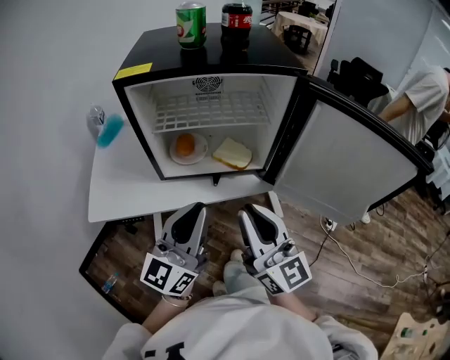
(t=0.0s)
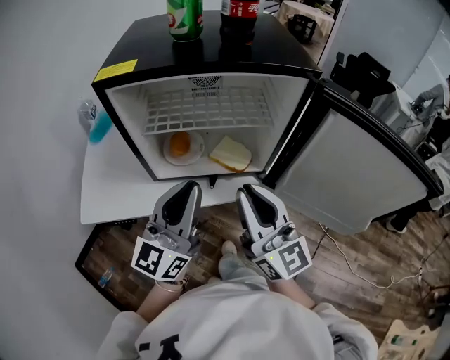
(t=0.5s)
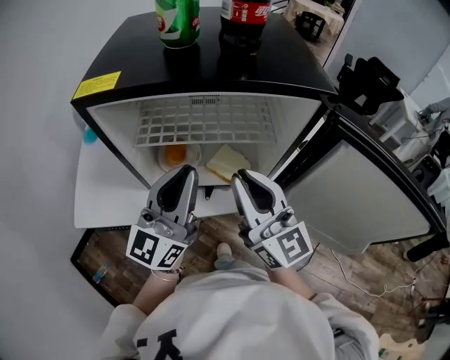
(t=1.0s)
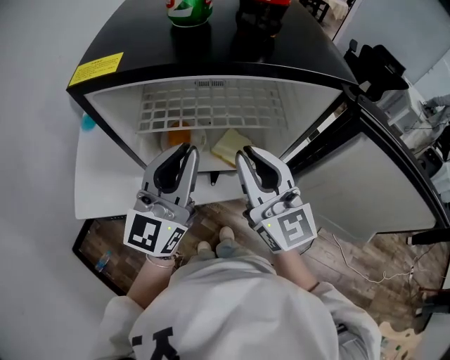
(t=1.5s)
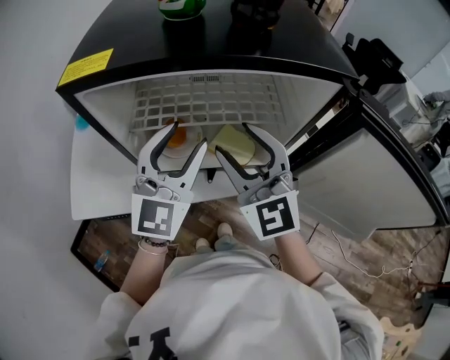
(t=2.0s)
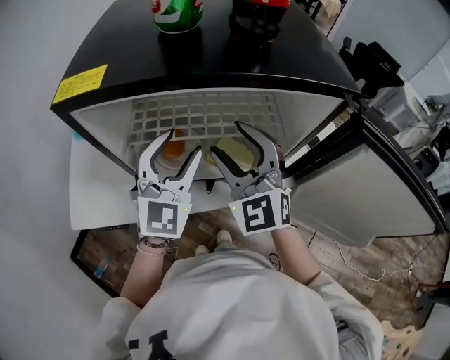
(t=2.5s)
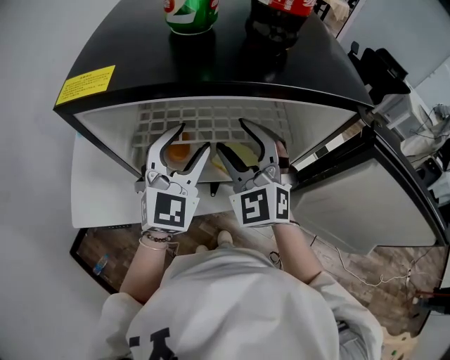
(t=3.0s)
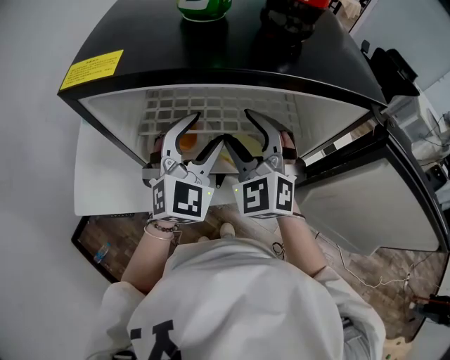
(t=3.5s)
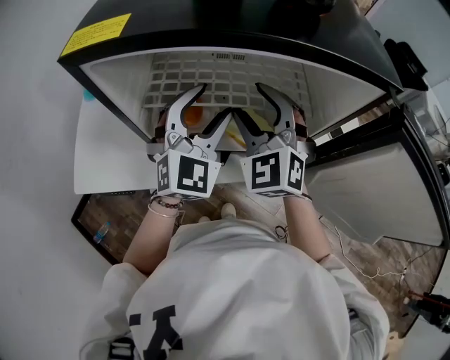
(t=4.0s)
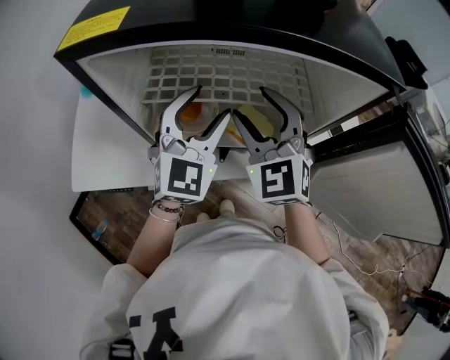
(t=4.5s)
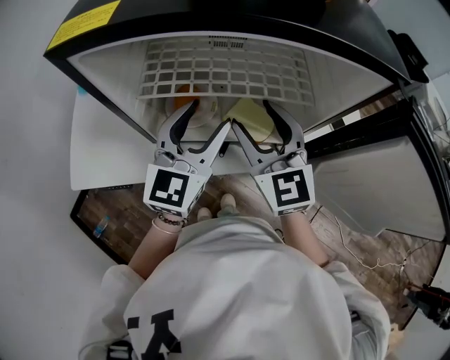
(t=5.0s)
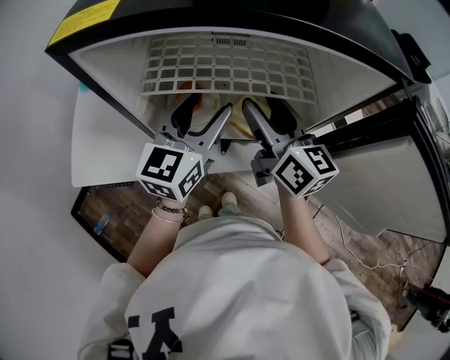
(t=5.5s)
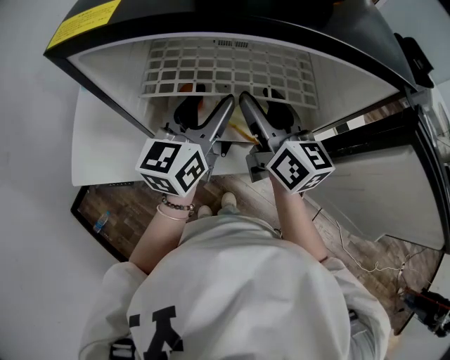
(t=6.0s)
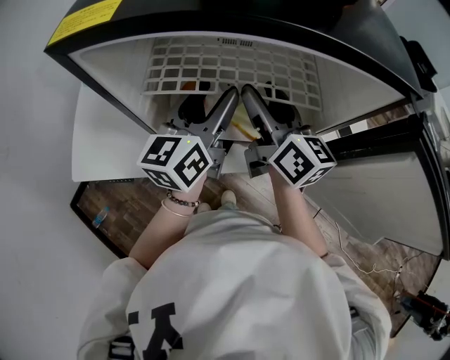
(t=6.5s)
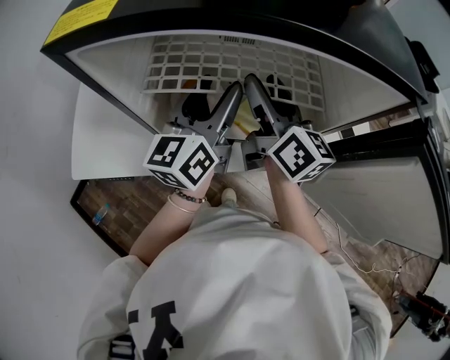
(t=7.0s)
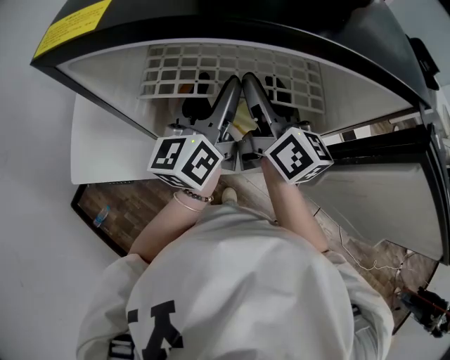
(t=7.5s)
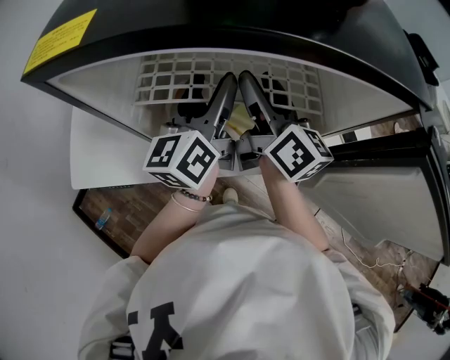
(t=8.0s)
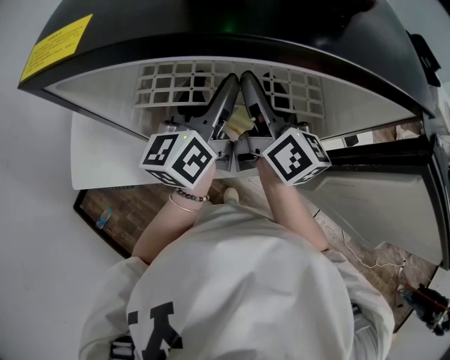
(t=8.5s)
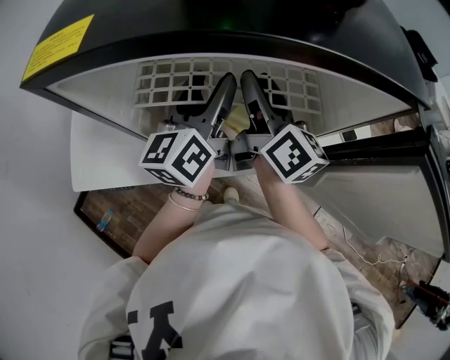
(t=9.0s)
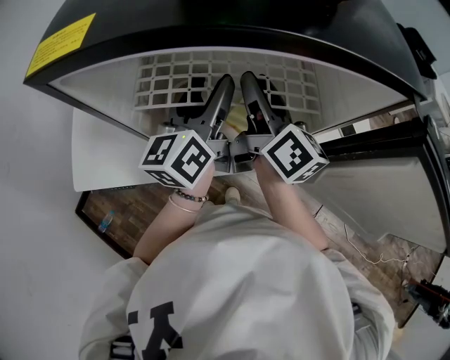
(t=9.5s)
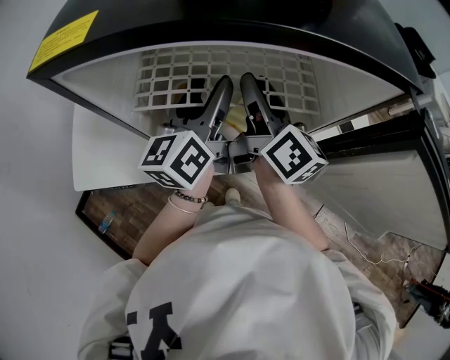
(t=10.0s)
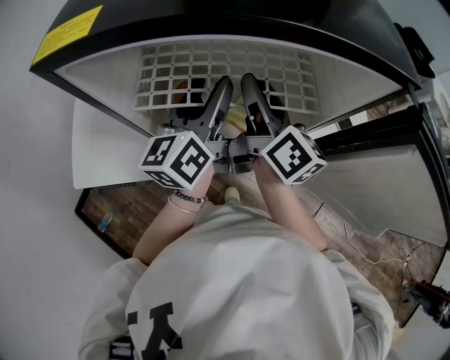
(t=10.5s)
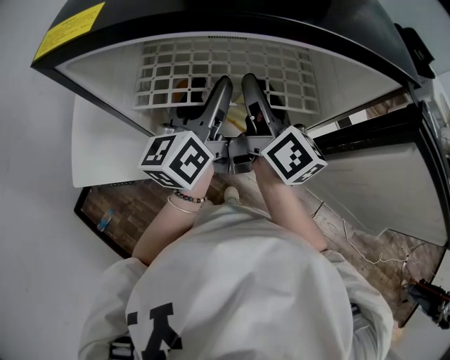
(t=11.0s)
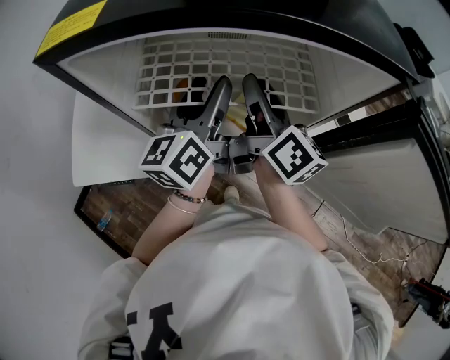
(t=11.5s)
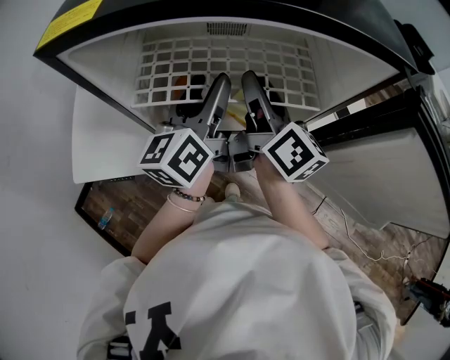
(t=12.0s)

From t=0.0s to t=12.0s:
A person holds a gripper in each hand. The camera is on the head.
From t=0.0s to t=2.0s: Both grippers move forward, approximately 20 cm. The left gripper changes its angle by approximately 30 degrees, and opens up, while the right gripper rotates about 40 degrees, and opens up.
From t=2.0s to t=4.0s: The two grippers go roughly 5 cm forward. The right gripper changes its angle by about 20 degrees; the left gripper swivels about 20 degrees.
From t=4.0s to t=6.0s: The left gripper rotates around the line of its fingers by approximately 50 degrees, counterclockwise from behind. The right gripper rotates around the line of its fingers by some 70 degrees, clockwise from behind.
From t=6.0s to t=8.0s: There are only small adjustments of the grippers.
From t=8.0s to t=12.0s: The grippers stay close to where they were, moving slightly.

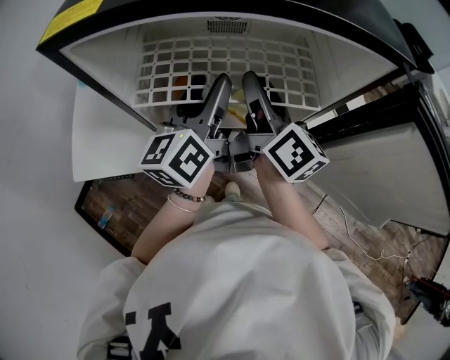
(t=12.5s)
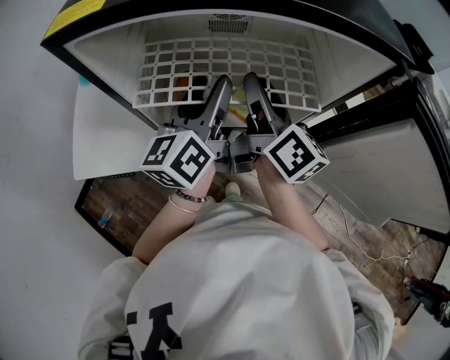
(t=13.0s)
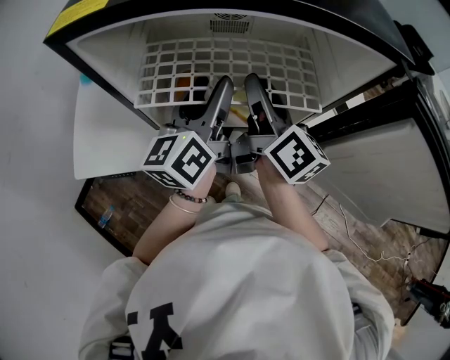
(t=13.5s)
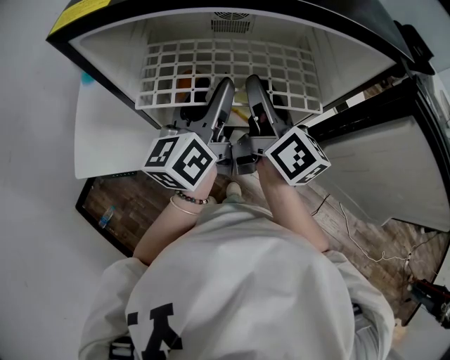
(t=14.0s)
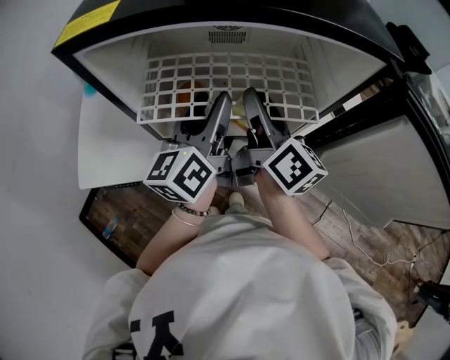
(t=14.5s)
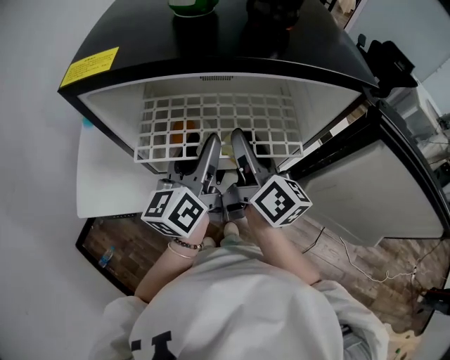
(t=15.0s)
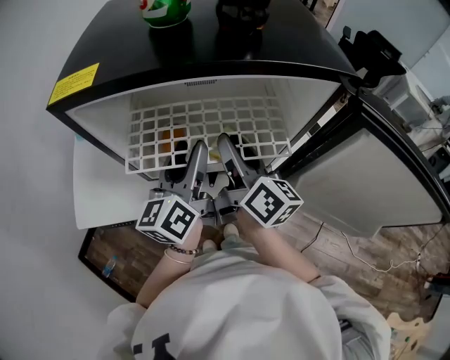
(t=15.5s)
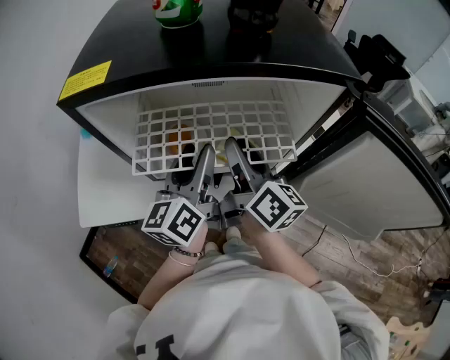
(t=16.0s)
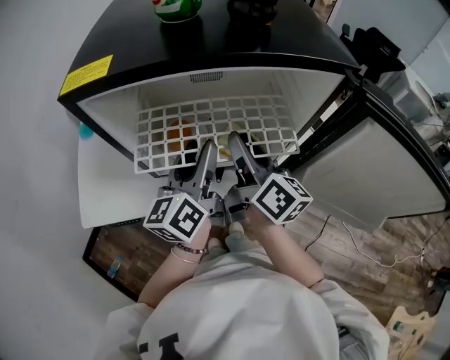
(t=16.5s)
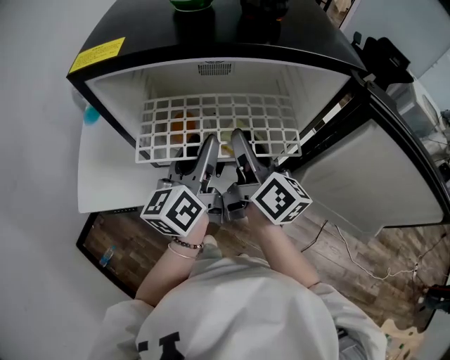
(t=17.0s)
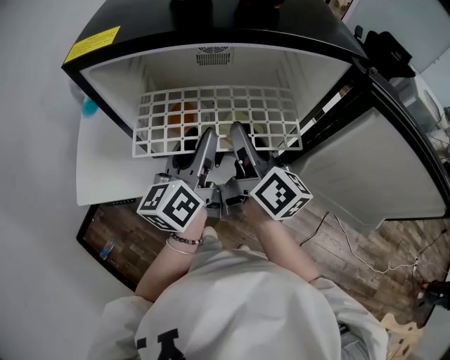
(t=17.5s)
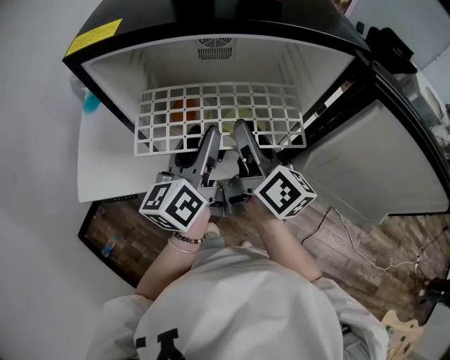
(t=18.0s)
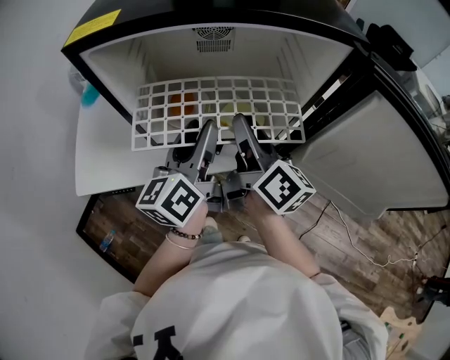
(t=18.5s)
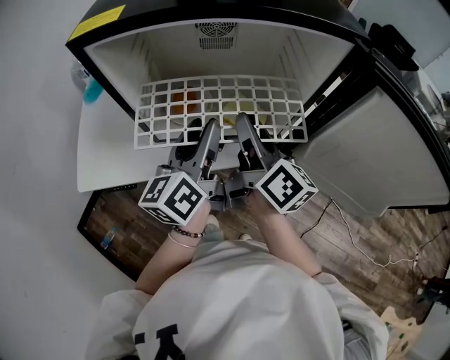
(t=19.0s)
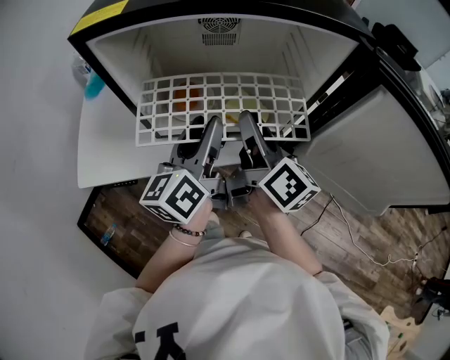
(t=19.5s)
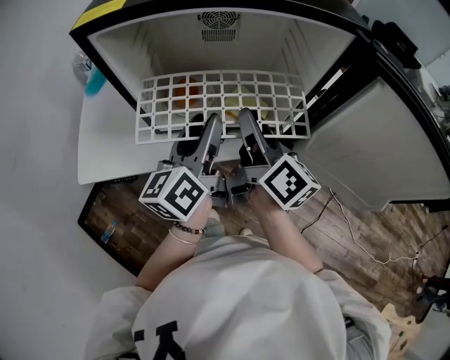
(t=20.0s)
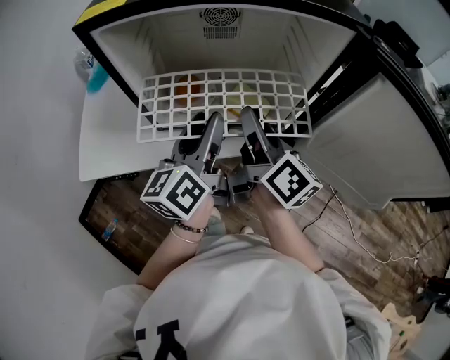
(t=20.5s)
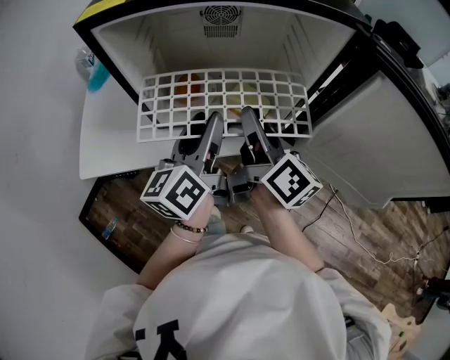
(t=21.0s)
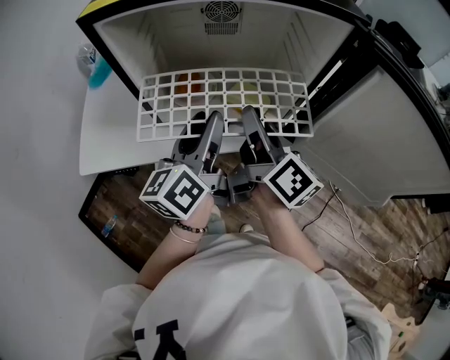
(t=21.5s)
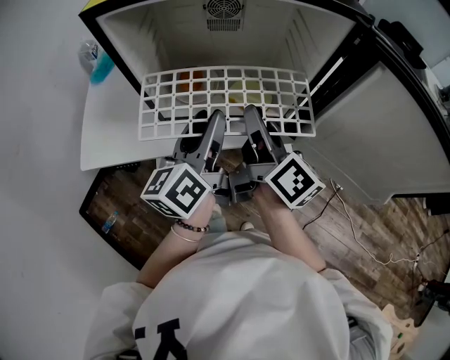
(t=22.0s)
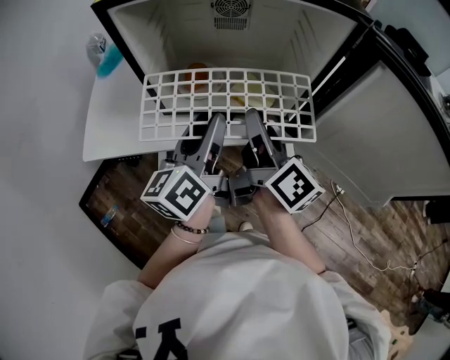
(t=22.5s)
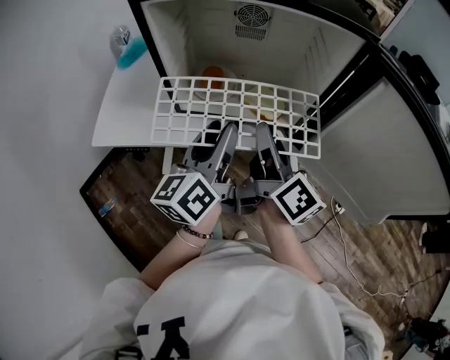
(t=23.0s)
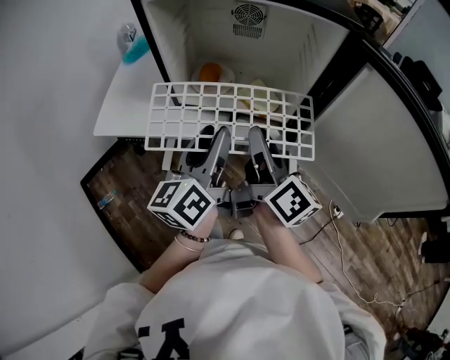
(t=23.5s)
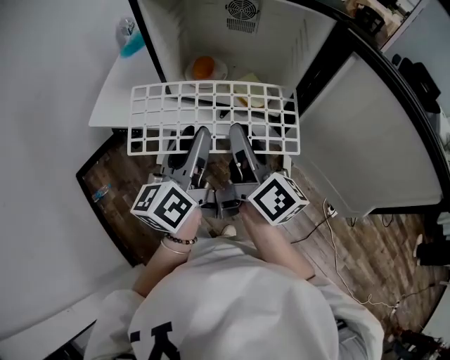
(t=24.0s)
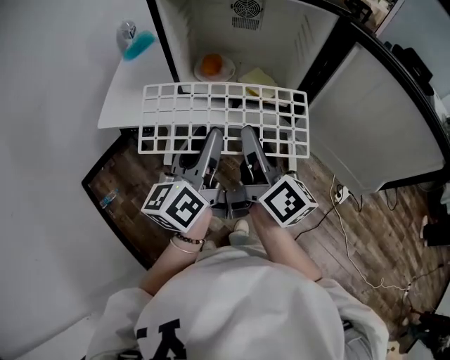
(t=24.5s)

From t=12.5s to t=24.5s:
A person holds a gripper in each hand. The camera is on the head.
From t=12.5s to t=16.5s: The grippers make only small movements.
From t=16.5s to t=20.5s: The grippers move only a little.
From t=20.5s to t=22.5s: There are only small adjustments of the grippers.
From t=22.5s to t=24.5s: Both grippers travel together backward, approximately 15 cm.

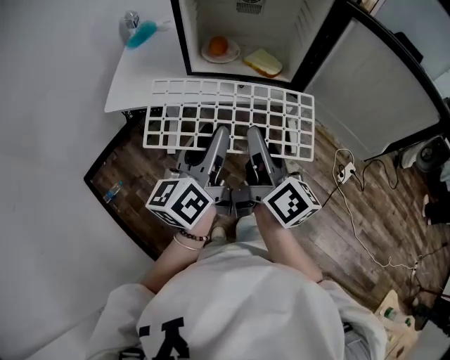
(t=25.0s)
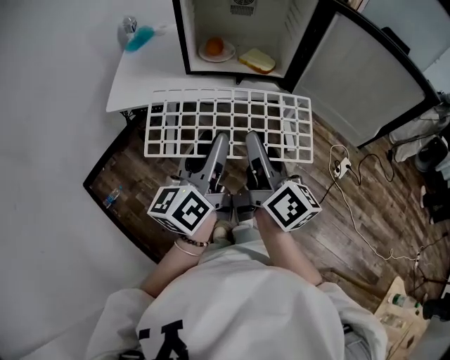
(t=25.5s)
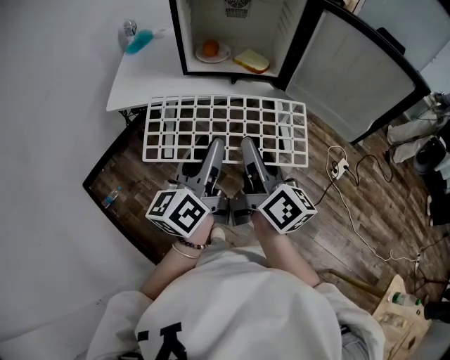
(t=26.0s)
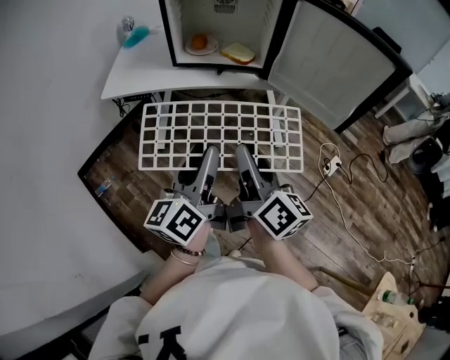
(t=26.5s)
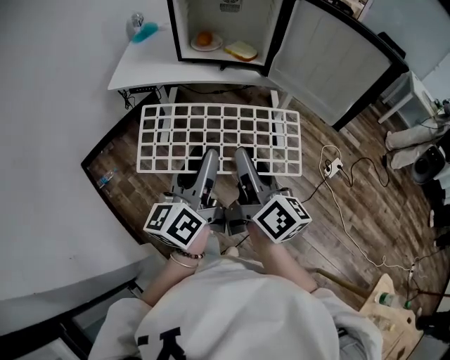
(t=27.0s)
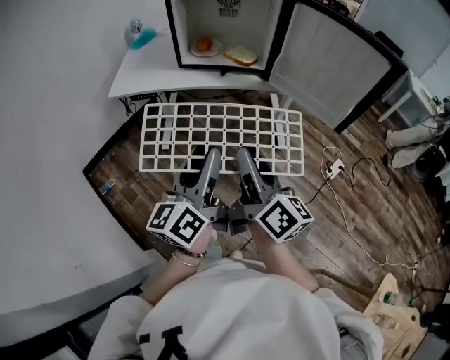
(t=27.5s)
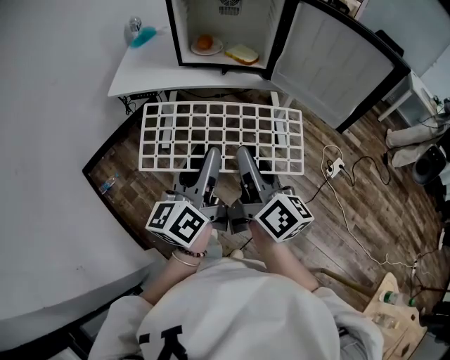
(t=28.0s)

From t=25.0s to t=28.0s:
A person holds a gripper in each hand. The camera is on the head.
From t=25.0s to t=26.5s: The grippers both shift backward by about 15 cm.
From t=26.5s to t=28.0s: There are only small adjustments of the grippers.
